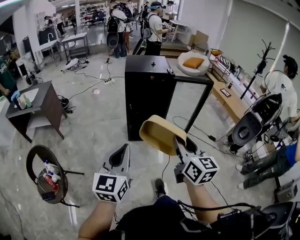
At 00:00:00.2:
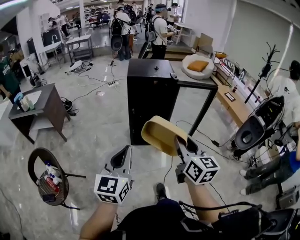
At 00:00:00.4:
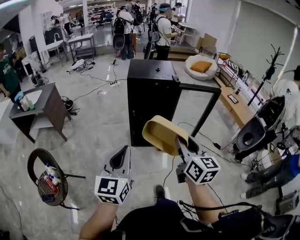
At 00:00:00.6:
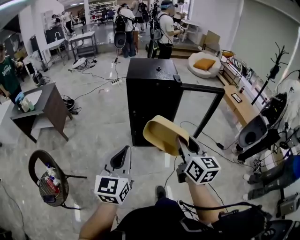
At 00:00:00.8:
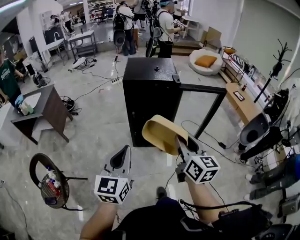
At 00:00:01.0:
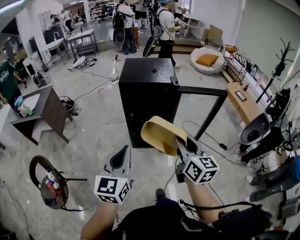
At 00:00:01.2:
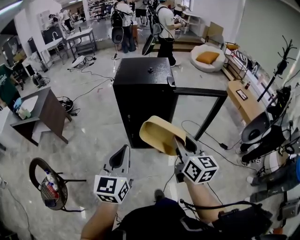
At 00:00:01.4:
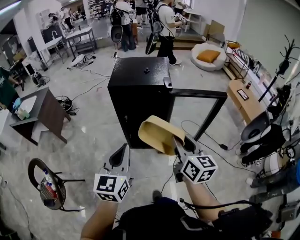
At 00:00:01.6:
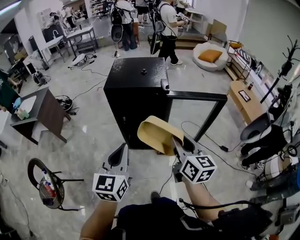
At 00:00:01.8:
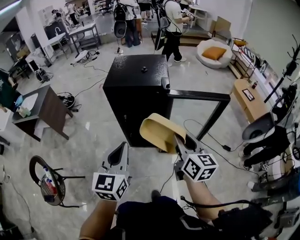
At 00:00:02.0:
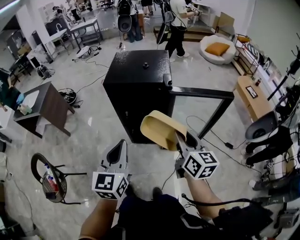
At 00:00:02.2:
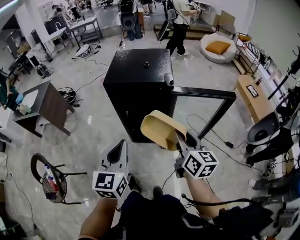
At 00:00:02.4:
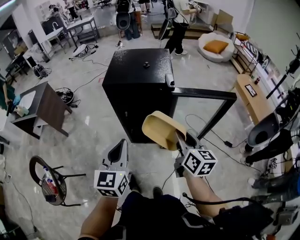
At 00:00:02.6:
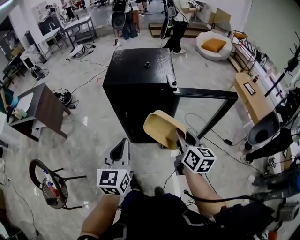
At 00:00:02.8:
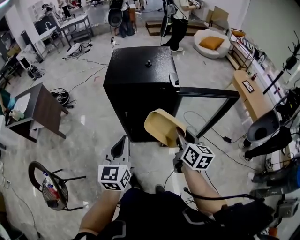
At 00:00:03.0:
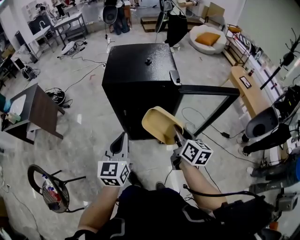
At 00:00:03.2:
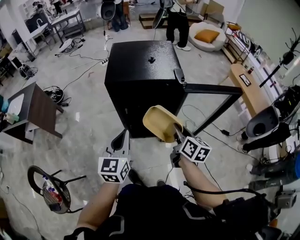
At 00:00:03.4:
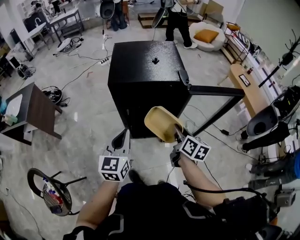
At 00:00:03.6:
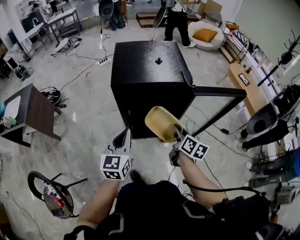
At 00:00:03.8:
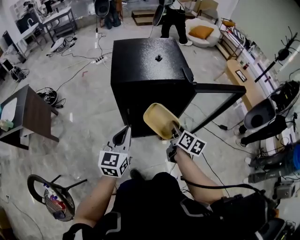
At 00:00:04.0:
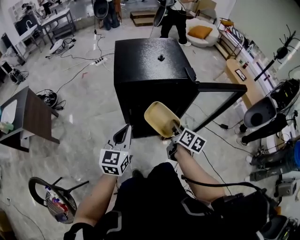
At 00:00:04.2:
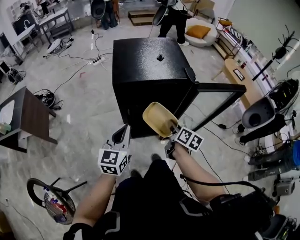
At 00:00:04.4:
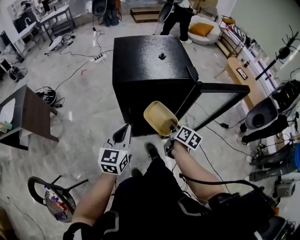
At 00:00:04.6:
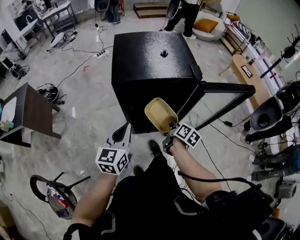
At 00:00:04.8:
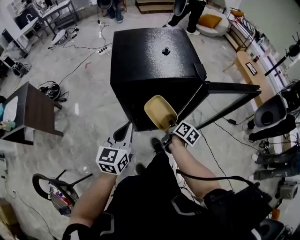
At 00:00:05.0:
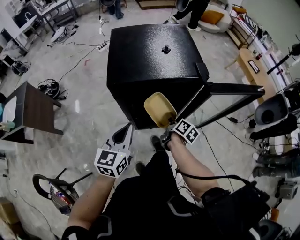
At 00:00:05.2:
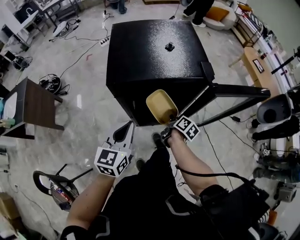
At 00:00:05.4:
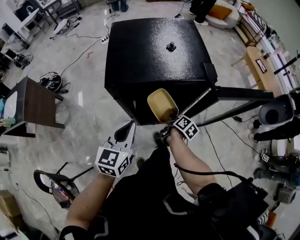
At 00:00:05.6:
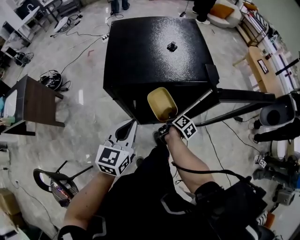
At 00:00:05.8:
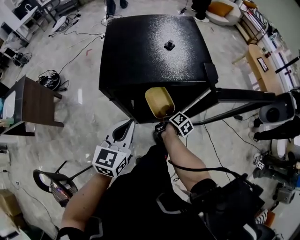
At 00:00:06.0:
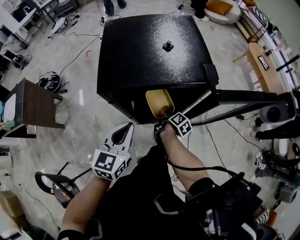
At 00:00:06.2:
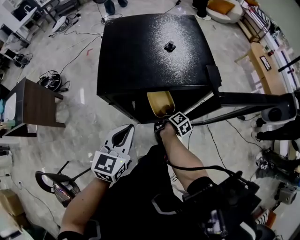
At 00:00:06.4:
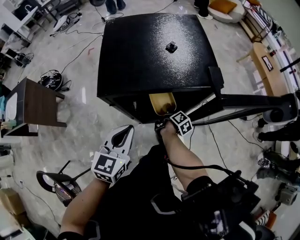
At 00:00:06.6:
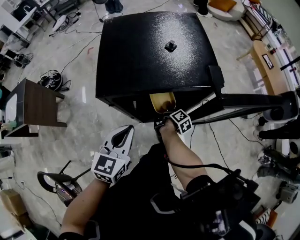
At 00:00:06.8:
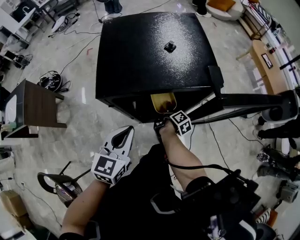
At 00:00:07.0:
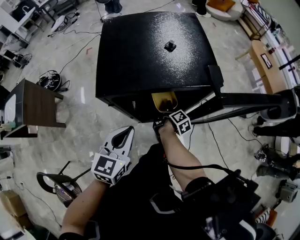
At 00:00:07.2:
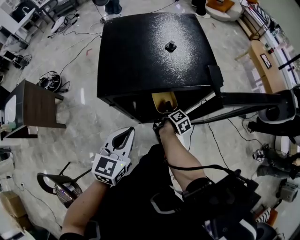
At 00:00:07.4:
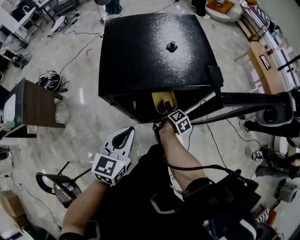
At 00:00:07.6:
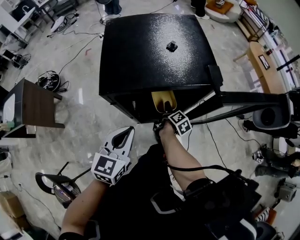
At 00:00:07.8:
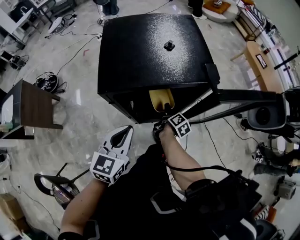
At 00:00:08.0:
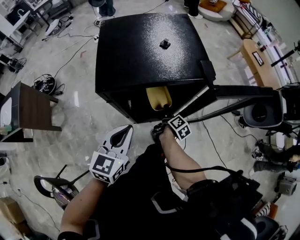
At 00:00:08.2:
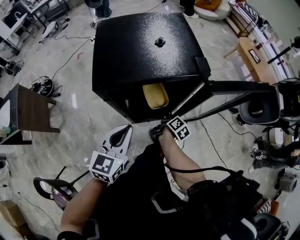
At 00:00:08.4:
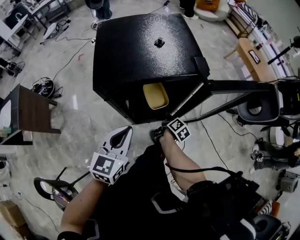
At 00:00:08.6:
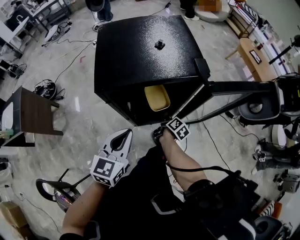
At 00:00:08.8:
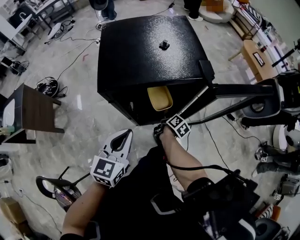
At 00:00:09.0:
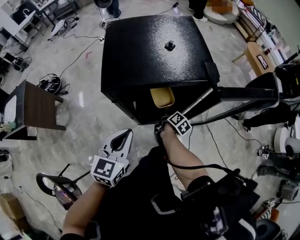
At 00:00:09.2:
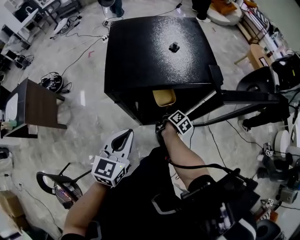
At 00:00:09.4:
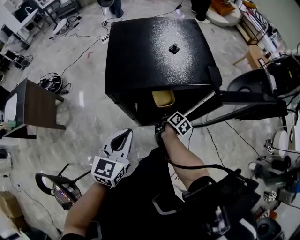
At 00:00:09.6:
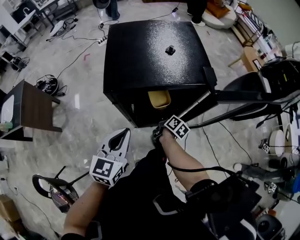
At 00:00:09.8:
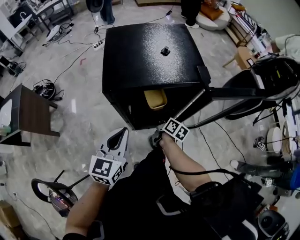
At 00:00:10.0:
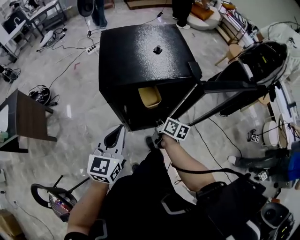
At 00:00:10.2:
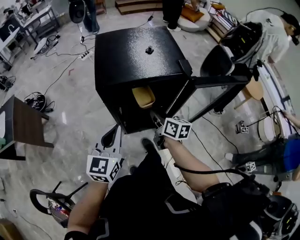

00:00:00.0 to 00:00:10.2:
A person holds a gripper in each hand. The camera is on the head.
00:00:00.0 to 00:00:01.4: Both grippers travel together forward and to the right, approximately 25 cm.
00:00:01.4 to 00:00:03.0: Both grippers travel together forward and downward, about 15 cm.
00:00:03.0 to 00:00:04.4: The left gripper is displaced forward, to the left and downward by roughly 10 cm. Meanwhile the right gripper travels downward, forward and to the left by some 15 cm, and changes its angle by roughly 20 degrees.
00:00:04.4 to 00:00:05.8: The right gripper shifts some 20 cm downward and forward, and rotates about 20 degrees, while the left gripper goes about 5 cm forward.
00:00:05.8 to 00:00:07.2: The right gripper opens.
00:00:07.2 to 00:00:08.8: The right gripper closes its fingers.
00:00:08.8 to 00:00:10.2: The right gripper goes about 20 cm upward, and changes its angle by some 40 degrees.

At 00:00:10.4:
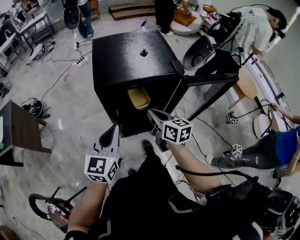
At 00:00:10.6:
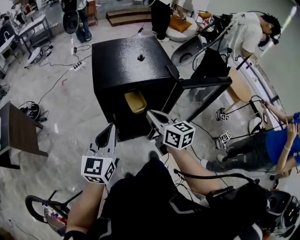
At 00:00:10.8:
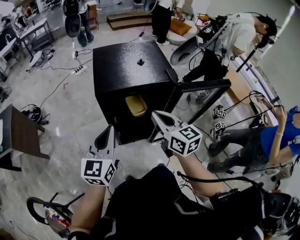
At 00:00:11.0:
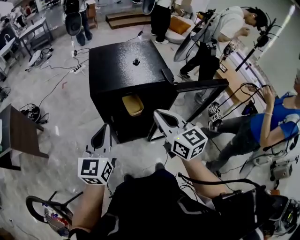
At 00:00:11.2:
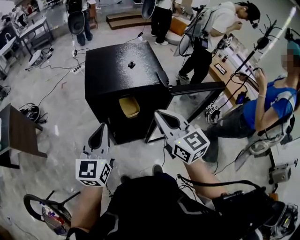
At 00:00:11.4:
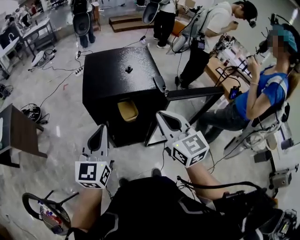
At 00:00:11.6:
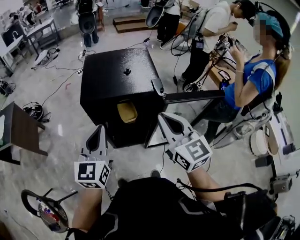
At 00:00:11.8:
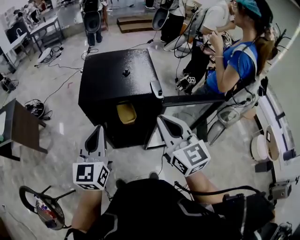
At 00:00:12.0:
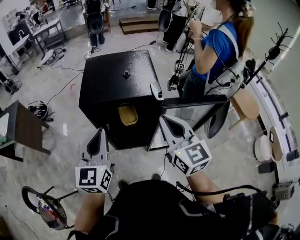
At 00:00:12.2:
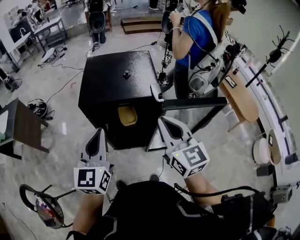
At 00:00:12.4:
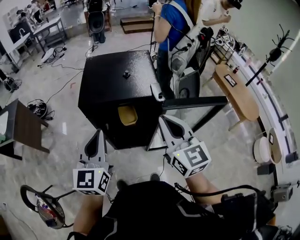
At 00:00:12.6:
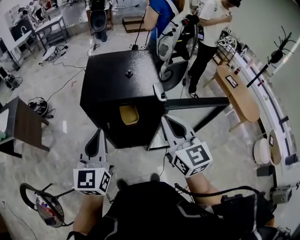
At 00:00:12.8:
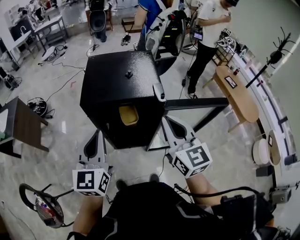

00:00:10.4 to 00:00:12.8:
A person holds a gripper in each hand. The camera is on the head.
00:00:10.4 to 00:00:11.6: The right gripper moves upward and to the right, about 20 cm, and changes its angle by some 30 degrees; the left gripper travels upward by about 10 cm.
00:00:11.6 to 00:00:12.8: The grippers stay close to where they were, moving slightly.

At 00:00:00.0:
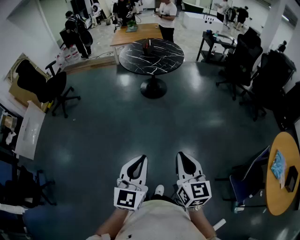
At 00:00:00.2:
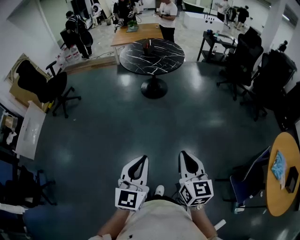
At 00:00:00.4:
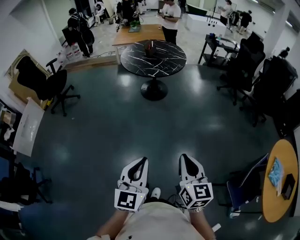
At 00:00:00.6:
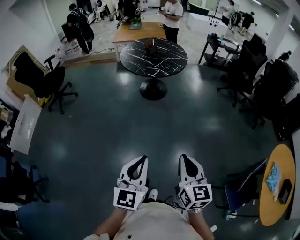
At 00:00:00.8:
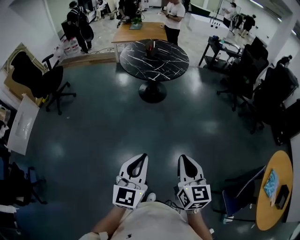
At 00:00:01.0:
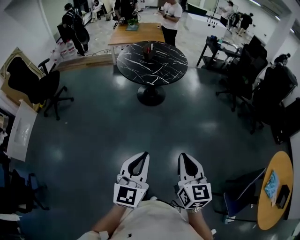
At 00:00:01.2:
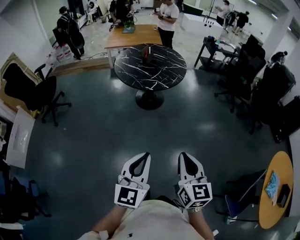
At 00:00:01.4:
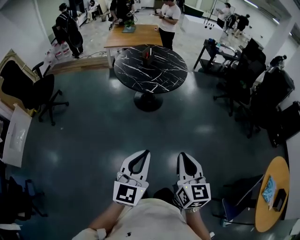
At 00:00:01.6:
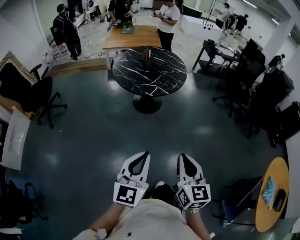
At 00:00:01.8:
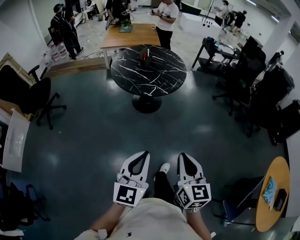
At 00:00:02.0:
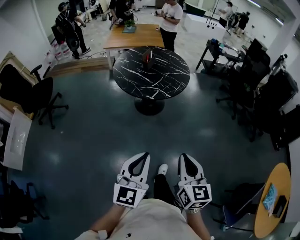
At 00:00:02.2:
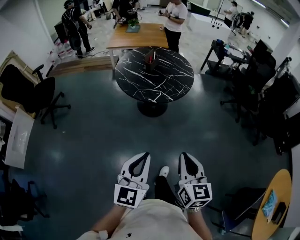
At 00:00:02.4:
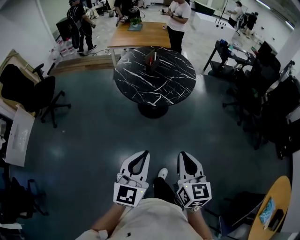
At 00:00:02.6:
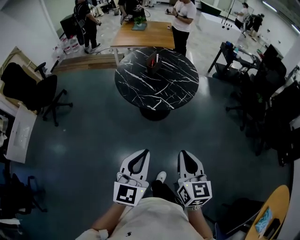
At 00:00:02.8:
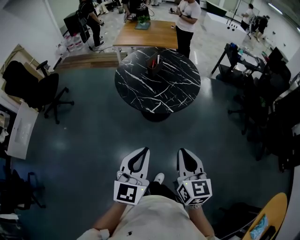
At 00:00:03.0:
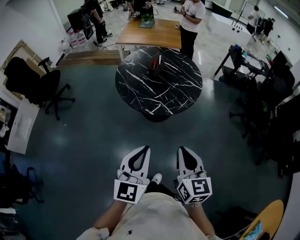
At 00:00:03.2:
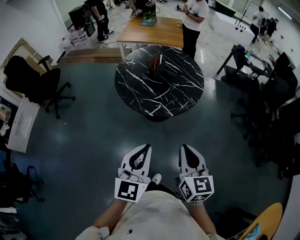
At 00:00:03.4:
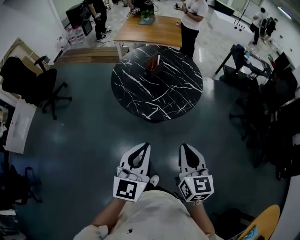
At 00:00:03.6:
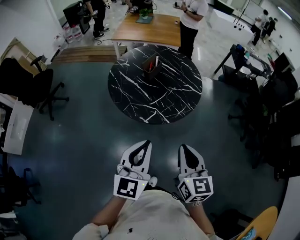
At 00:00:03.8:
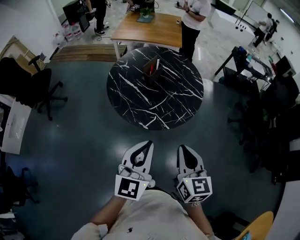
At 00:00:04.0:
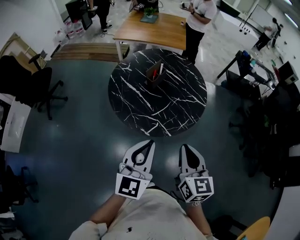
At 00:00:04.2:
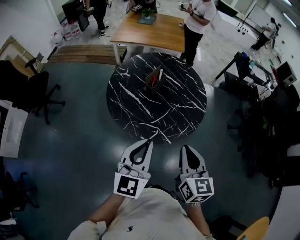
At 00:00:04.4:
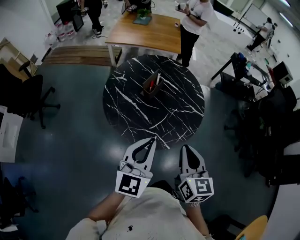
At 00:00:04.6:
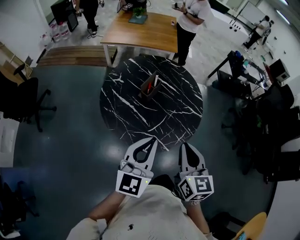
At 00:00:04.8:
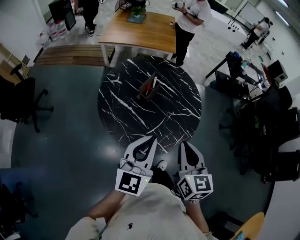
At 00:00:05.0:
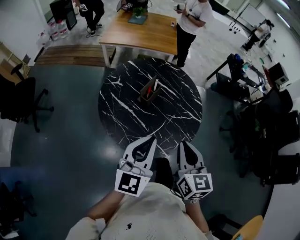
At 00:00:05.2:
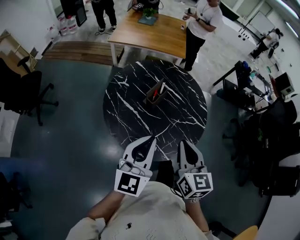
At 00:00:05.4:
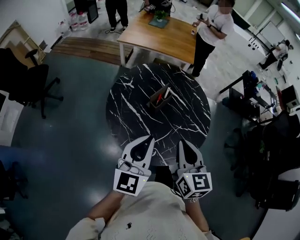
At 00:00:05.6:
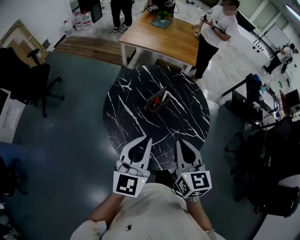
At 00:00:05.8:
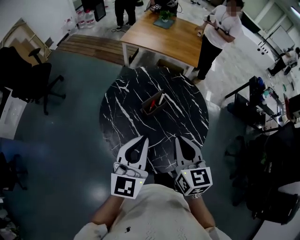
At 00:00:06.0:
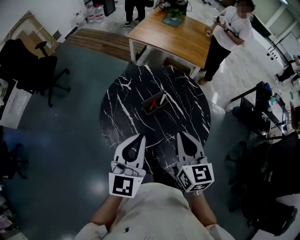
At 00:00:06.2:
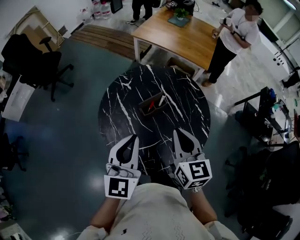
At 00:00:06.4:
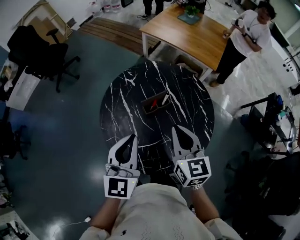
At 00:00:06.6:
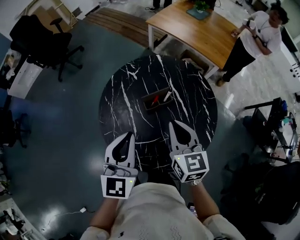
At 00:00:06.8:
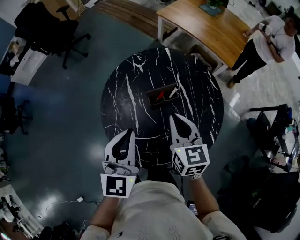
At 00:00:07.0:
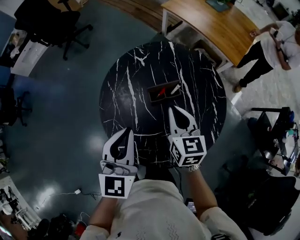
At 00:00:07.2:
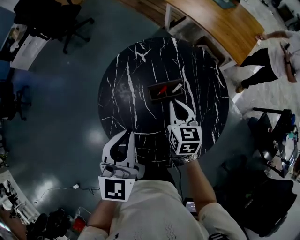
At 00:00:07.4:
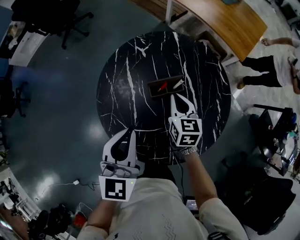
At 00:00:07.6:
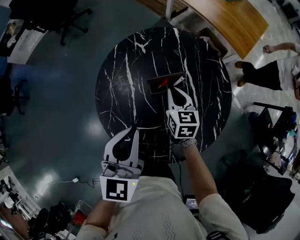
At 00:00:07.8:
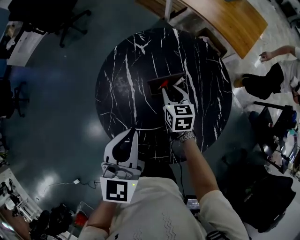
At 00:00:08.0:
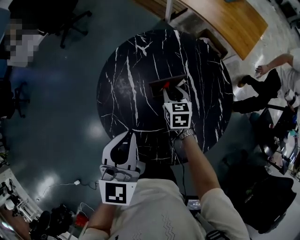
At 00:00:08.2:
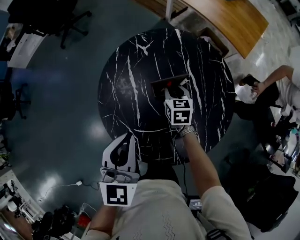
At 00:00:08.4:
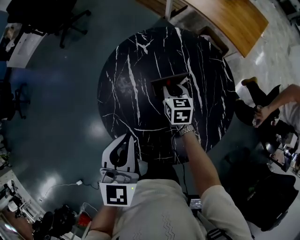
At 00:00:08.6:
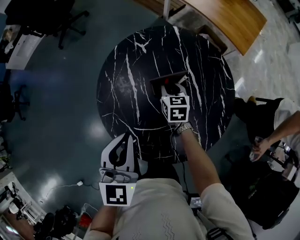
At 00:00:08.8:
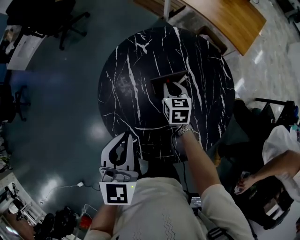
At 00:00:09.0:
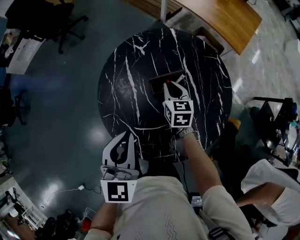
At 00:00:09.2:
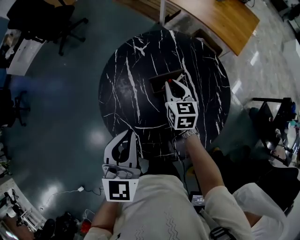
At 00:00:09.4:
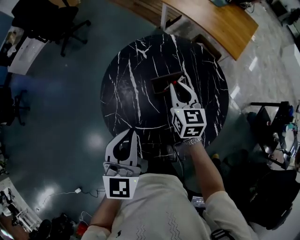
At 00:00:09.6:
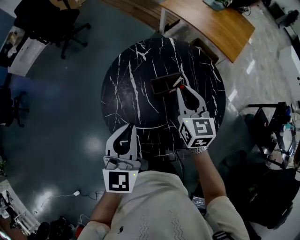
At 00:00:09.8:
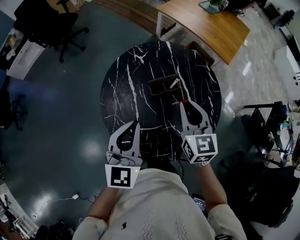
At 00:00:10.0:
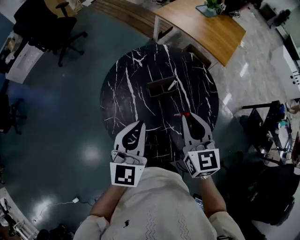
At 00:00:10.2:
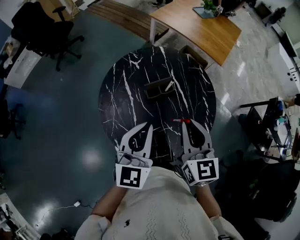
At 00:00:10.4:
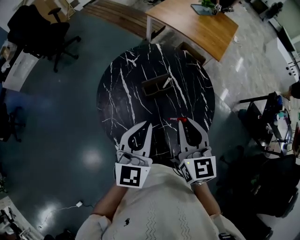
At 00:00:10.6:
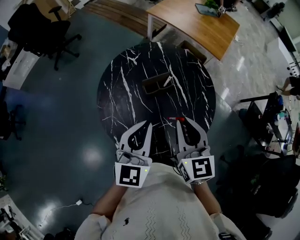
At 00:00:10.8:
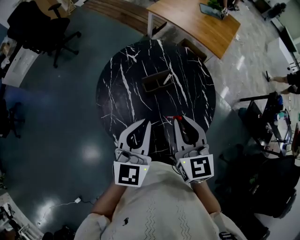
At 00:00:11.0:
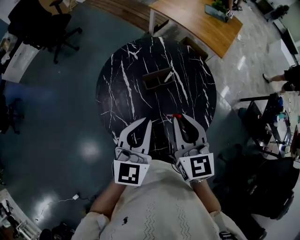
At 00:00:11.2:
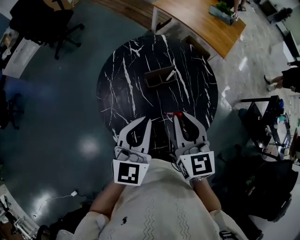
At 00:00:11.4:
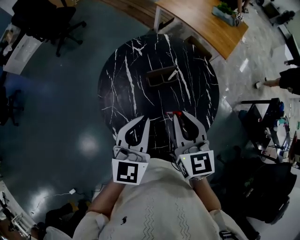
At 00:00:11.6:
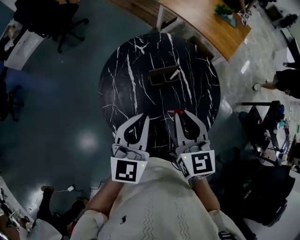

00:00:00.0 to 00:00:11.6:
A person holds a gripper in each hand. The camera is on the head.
00:00:00.0 to 00:00:01.4: Both grippers move forward, approximately 25 cm.
00:00:01.4 to 00:00:02.8: Both grippers move forward, some 30 cm.
00:00:02.8 to 00:00:04.4: Both grippers move forward, roughly 35 cm.
00:00:04.4 to 00:00:05.8: The two grippers go some 20 cm forward. The right gripper rotates some 20 degrees, while the left gripper turns by approximately 20 degrees.
00:00:05.8 to 00:00:07.2: The right gripper moves some 25 cm, and turns by about 30 degrees; the left gripper moves downward, approximately 10 cm, and turns by some 30 degrees.
00:00:07.2 to 00:00:08.8: The right gripper is displaced downward and forward by approximately 10 cm.
00:00:08.8 to 00:00:10.2: The left gripper heads upward and to the right, covering some 10 cm, and rotates some 20 degrees; the right gripper goes about 35 cm upward and backward, and swivels about 20 degrees.
00:00:10.2 to 00:00:11.6: The grippers make only small movements.
